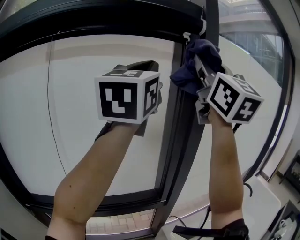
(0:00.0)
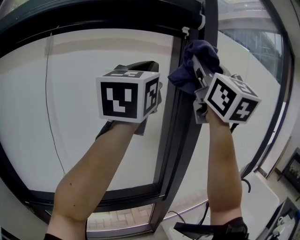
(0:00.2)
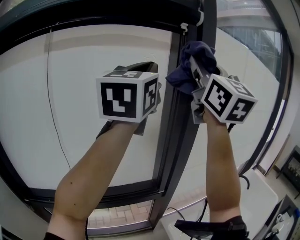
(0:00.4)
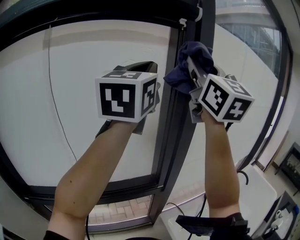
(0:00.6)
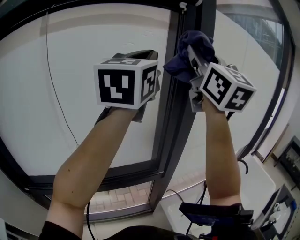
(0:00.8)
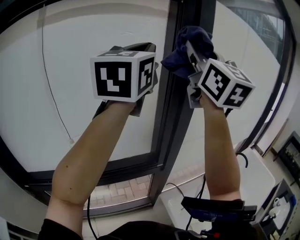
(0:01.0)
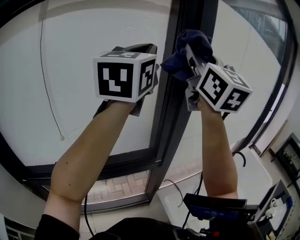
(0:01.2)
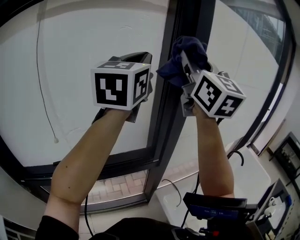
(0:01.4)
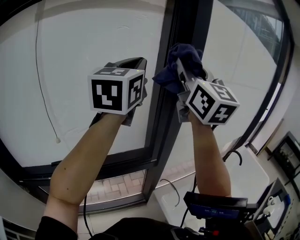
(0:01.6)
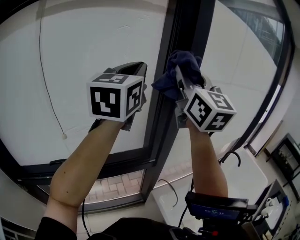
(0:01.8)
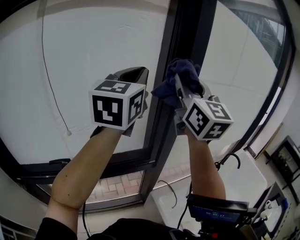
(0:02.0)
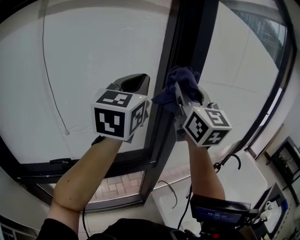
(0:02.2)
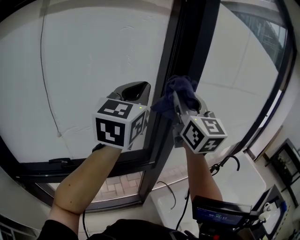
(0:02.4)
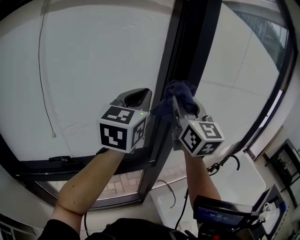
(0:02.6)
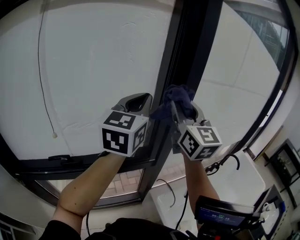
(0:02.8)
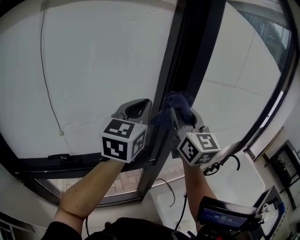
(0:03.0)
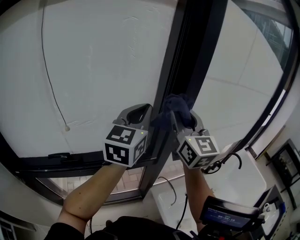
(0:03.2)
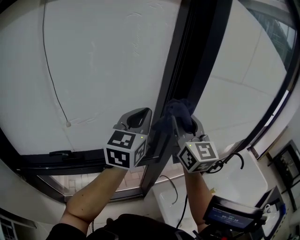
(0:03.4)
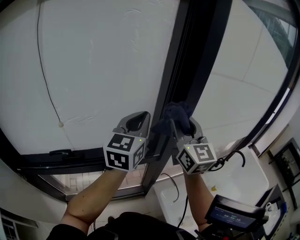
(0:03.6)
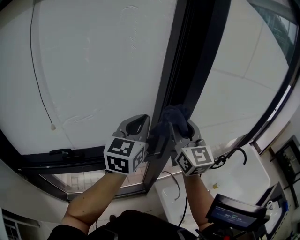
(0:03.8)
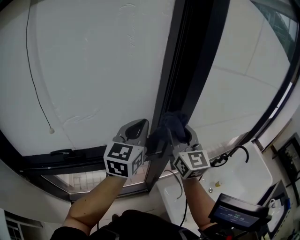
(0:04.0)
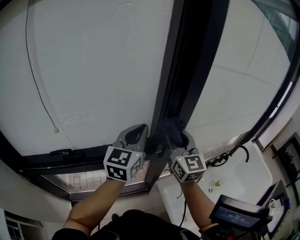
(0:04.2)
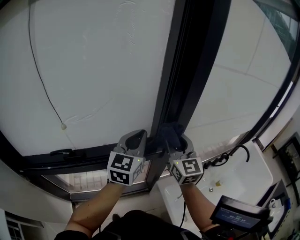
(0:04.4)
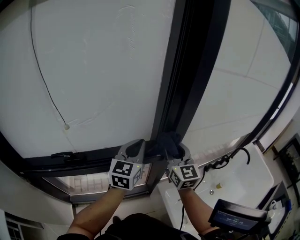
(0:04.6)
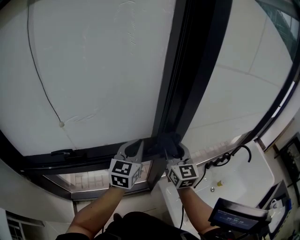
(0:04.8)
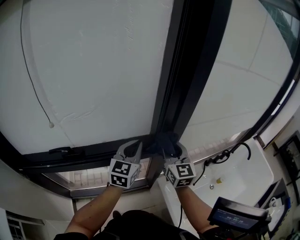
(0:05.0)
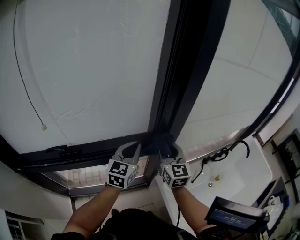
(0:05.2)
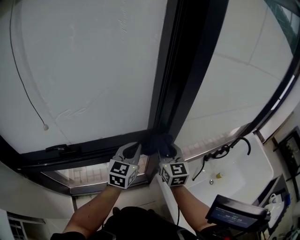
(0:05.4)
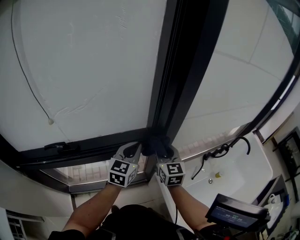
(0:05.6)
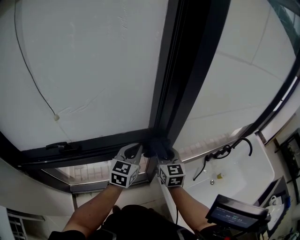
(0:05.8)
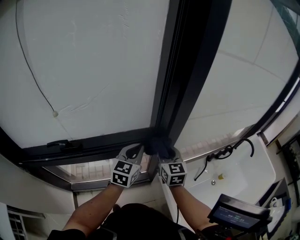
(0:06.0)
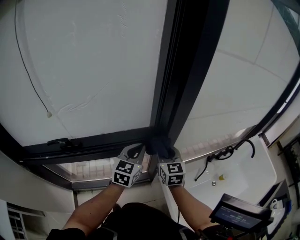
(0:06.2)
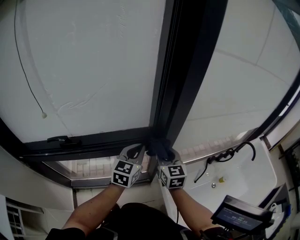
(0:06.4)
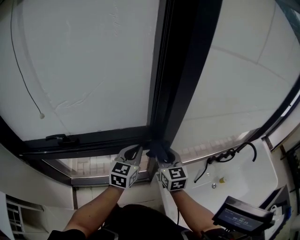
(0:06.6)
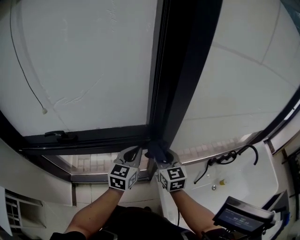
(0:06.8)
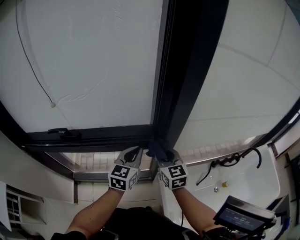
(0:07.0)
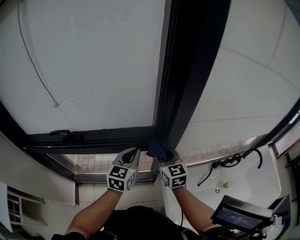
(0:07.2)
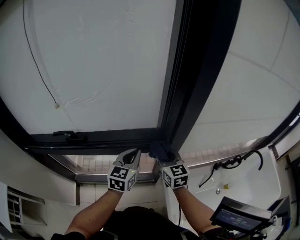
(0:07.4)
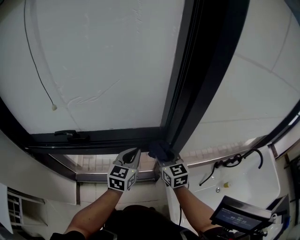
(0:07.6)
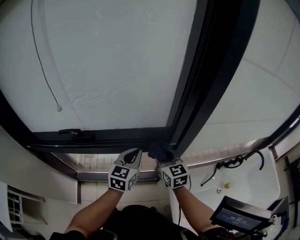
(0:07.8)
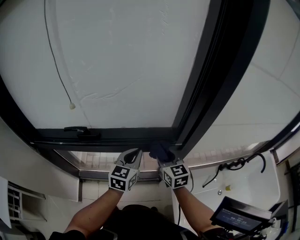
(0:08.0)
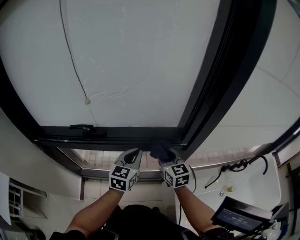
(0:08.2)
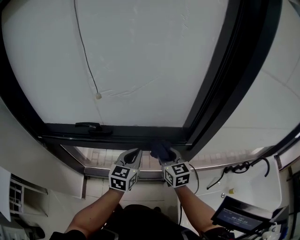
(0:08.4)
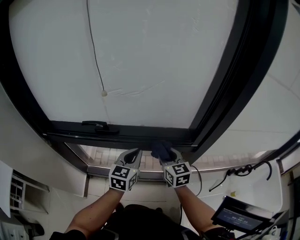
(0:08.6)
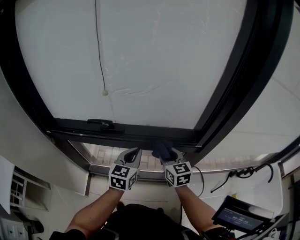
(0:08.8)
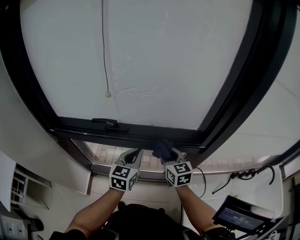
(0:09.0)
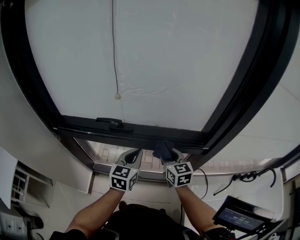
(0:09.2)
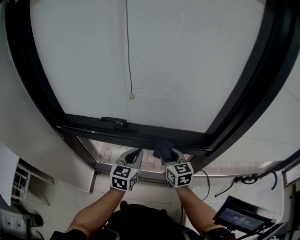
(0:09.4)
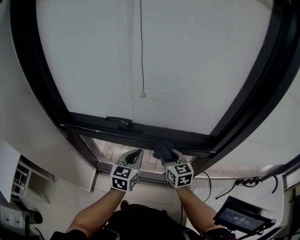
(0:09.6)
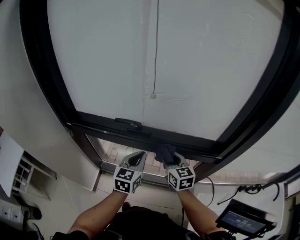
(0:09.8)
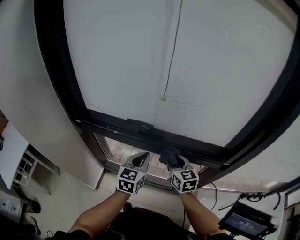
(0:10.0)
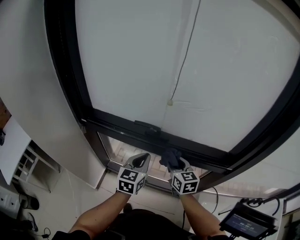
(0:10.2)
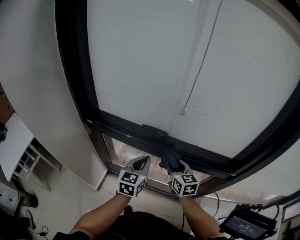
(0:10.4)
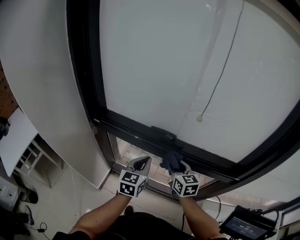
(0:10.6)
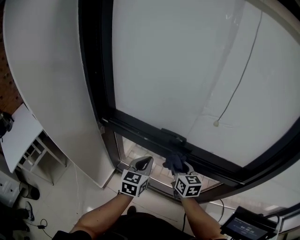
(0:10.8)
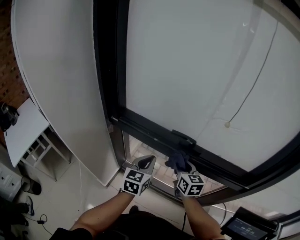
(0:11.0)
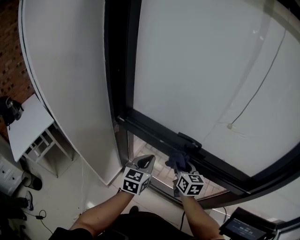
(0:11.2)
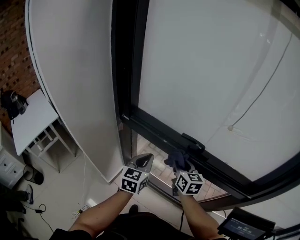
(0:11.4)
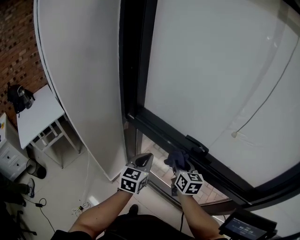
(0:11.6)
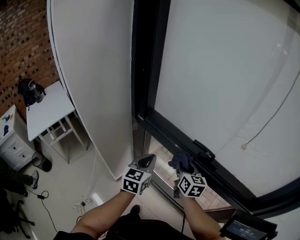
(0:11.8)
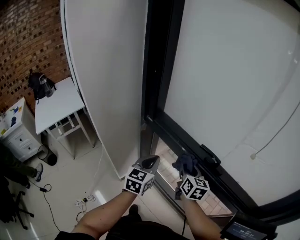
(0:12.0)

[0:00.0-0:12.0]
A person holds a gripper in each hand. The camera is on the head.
0:00.0 to 0:01.6: The grippers both shift downward by about 15 cm.
0:01.6 to 0:03.0: Both grippers move downward, about 15 cm.
0:03.0 to 0:04.4: Both grippers move downward, roughly 20 cm.
0:04.4 to 0:06.0: The two grippers go about 15 cm downward.
0:06.0 to 0:07.6: The right gripper shifts by approximately 5 cm; the left gripper moves some 5 cm.
0:07.6 to 0:09.0: Both grippers move to the left, approximately 15 cm.
0:09.0 to 0:10.4: The grippers both shift to the left by roughly 15 cm.
0:10.4 to 0:12.0: The right gripper travels to the left and forward by roughly 20 cm. The left gripper moves to the left, approximately 20 cm, and changes its angle by approximately 20 degrees.

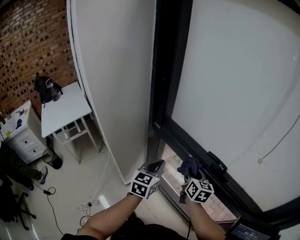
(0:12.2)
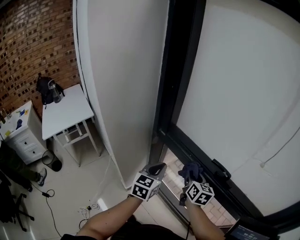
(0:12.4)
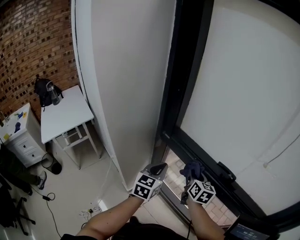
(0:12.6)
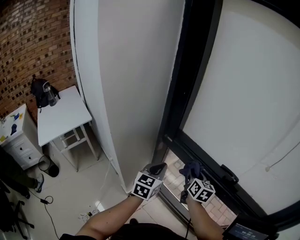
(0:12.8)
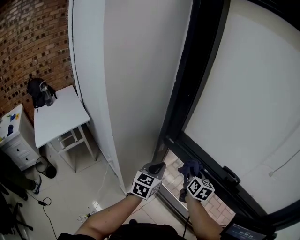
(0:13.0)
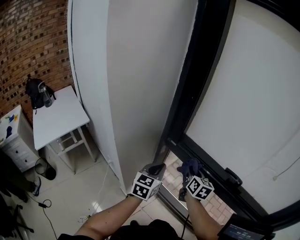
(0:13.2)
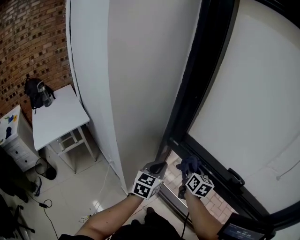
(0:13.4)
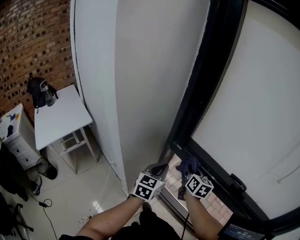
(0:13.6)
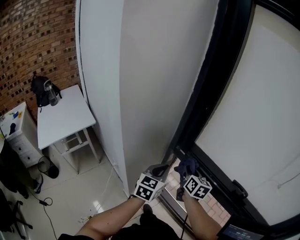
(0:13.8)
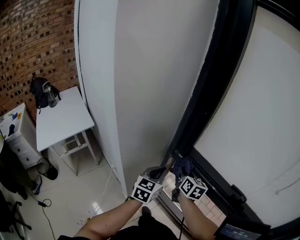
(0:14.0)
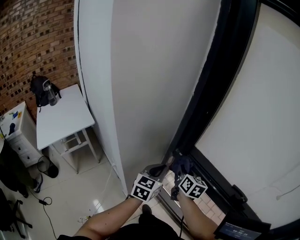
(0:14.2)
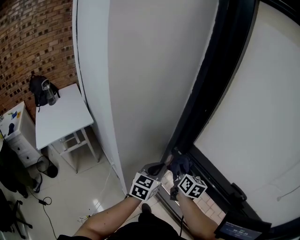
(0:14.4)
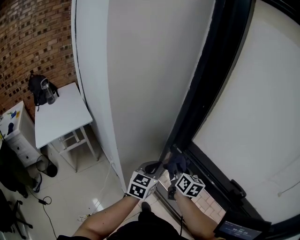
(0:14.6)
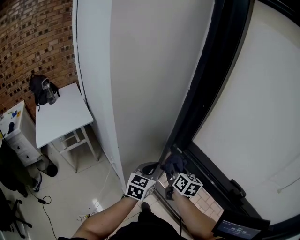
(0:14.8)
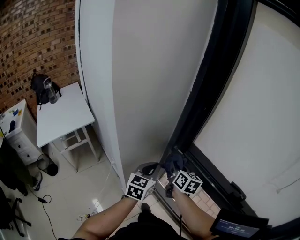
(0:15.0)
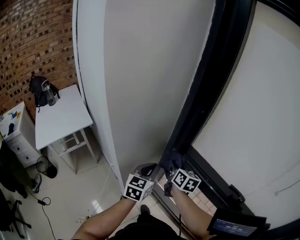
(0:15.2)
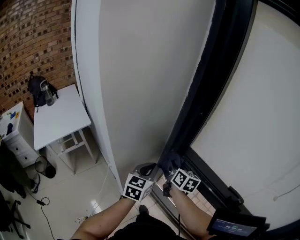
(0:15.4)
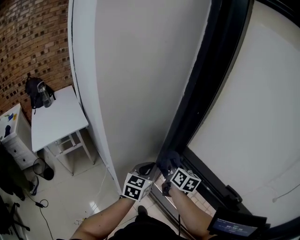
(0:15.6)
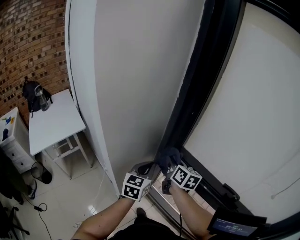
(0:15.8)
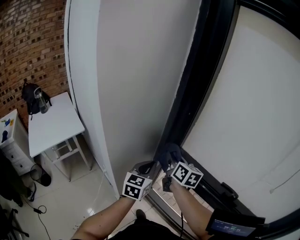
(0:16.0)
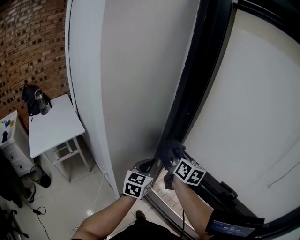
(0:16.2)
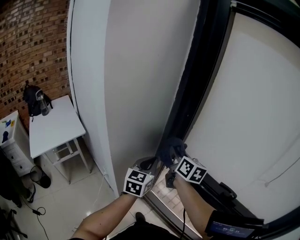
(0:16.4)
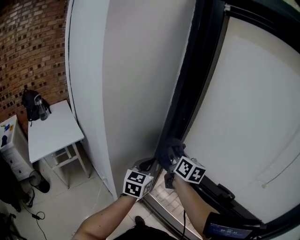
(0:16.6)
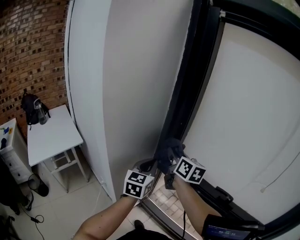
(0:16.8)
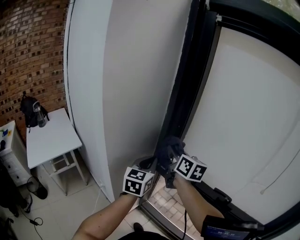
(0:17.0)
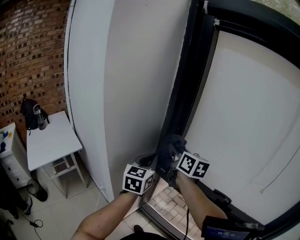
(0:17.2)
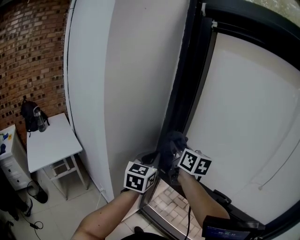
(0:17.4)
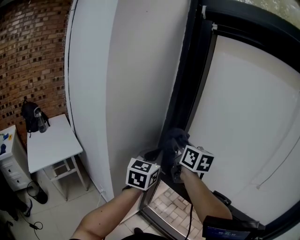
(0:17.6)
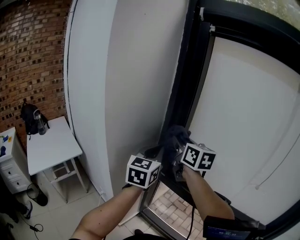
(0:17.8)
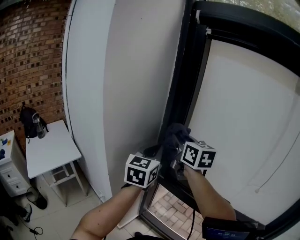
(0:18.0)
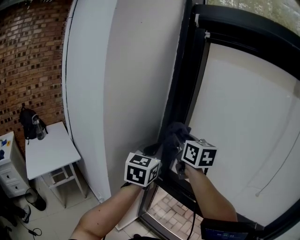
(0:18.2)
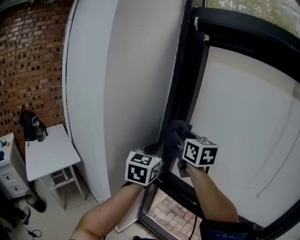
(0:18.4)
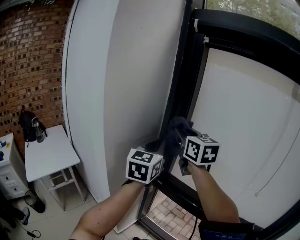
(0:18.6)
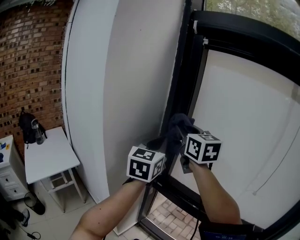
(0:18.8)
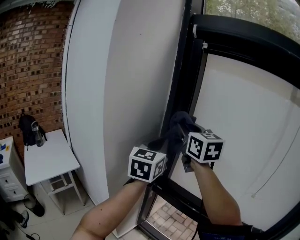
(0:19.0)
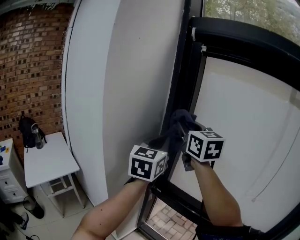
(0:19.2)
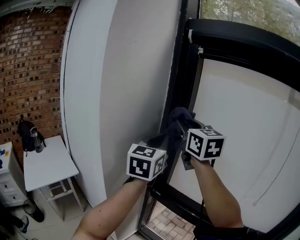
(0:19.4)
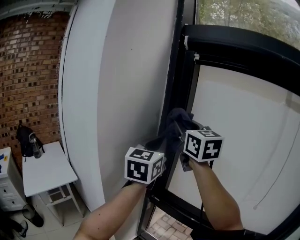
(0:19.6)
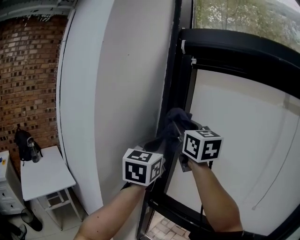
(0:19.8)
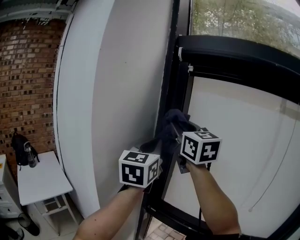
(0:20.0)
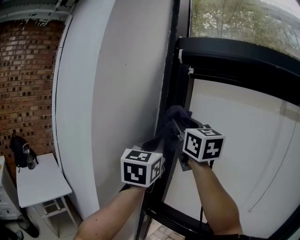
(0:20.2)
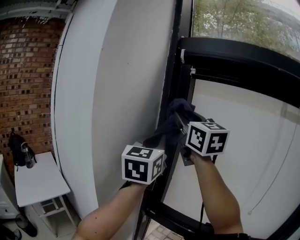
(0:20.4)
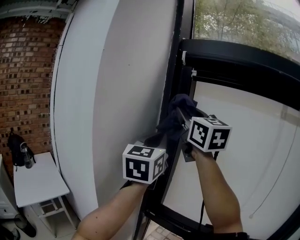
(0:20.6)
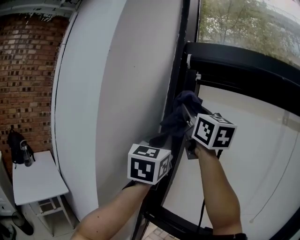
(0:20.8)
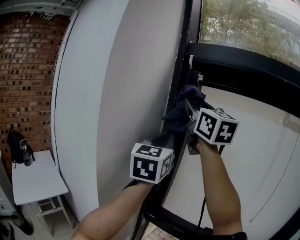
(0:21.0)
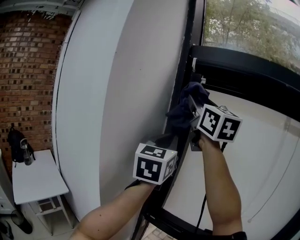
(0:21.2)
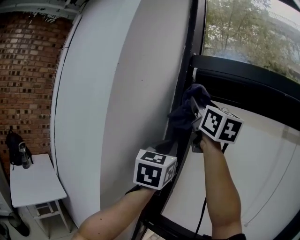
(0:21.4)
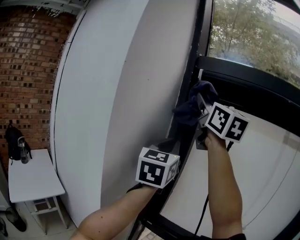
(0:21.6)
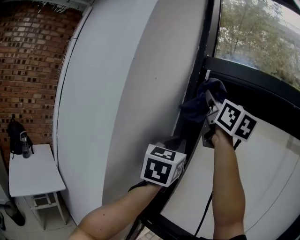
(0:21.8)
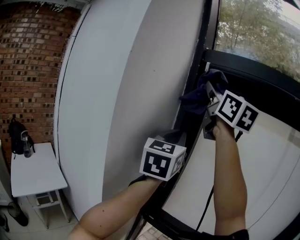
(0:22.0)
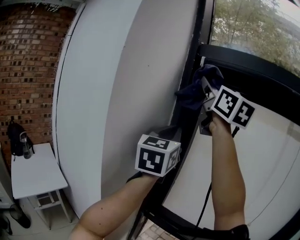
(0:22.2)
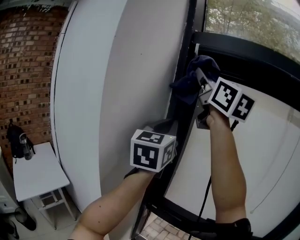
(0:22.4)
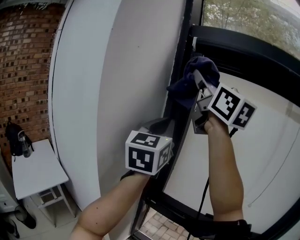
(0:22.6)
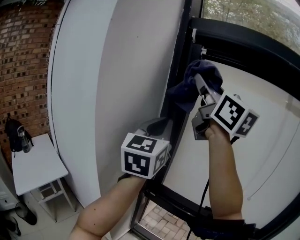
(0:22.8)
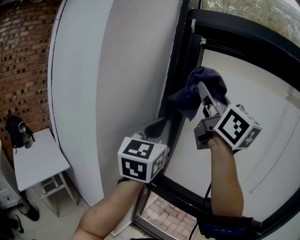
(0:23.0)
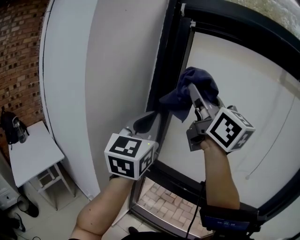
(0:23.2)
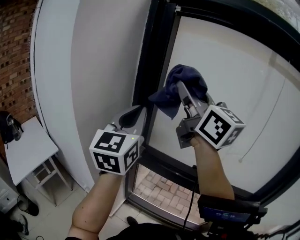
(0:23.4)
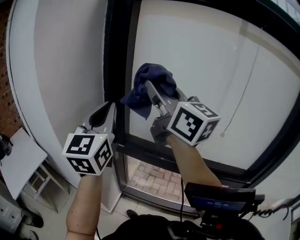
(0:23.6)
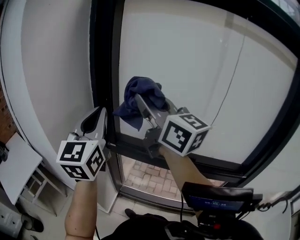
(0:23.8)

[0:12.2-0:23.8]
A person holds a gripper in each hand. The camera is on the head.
0:12.2 to 0:13.6: Both grippers move to the left and forward, some 15 cm.
0:13.6 to 0:15.0: The right gripper moves to the left, about 10 cm.
0:15.0 to 0:16.6: The left gripper is displaced upward by some 10 cm; the right gripper goes roughly 15 cm upward.
0:16.6 to 0:18.0: Both grippers move upward, about 15 cm.
0:18.0 to 0:19.4: The two grippers go about 15 cm upward.
0:19.4 to 0:21.0: The right gripper is displaced upward by roughly 20 cm. The left gripper shifts roughly 10 cm upward.
0:21.0 to 0:22.4: The right gripper goes about 5 cm upward.
0:22.4 to 0:23.8: The right gripper is displaced downward and backward by roughly 35 cm. Meanwhile the left gripper shifts roughly 20 cm downward and backward.
